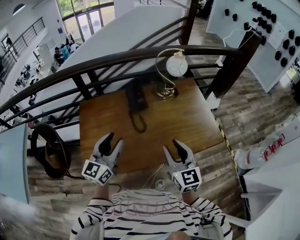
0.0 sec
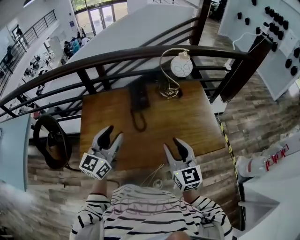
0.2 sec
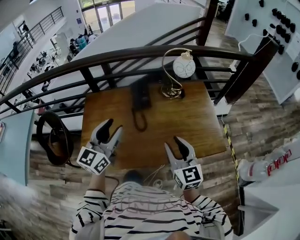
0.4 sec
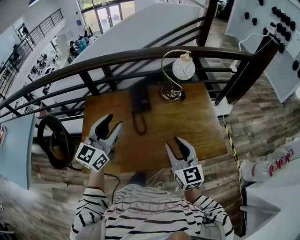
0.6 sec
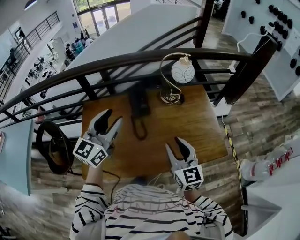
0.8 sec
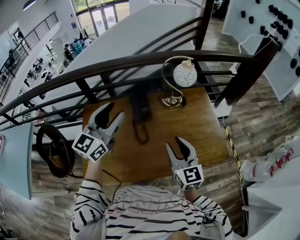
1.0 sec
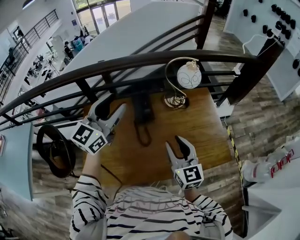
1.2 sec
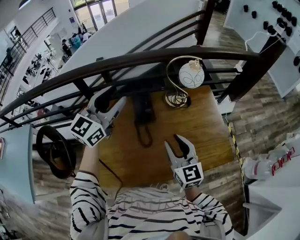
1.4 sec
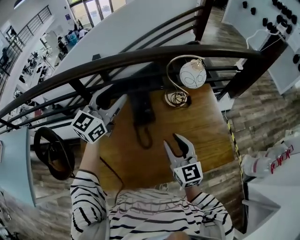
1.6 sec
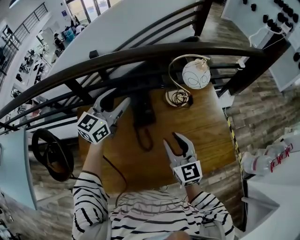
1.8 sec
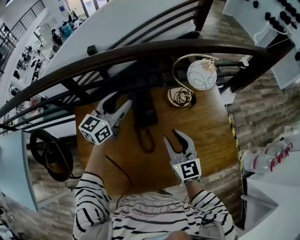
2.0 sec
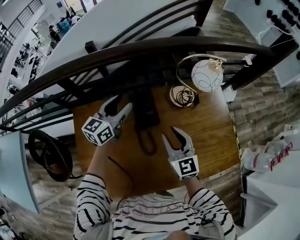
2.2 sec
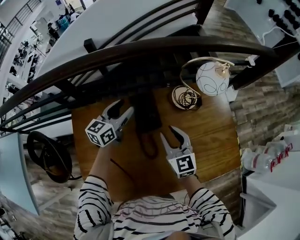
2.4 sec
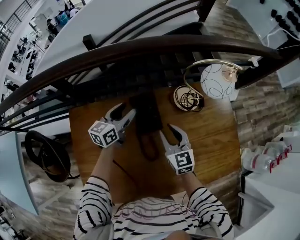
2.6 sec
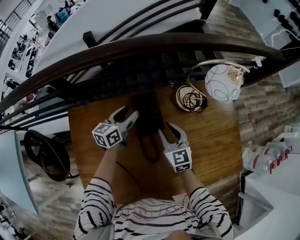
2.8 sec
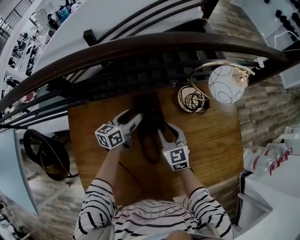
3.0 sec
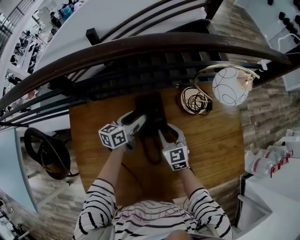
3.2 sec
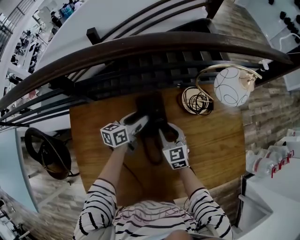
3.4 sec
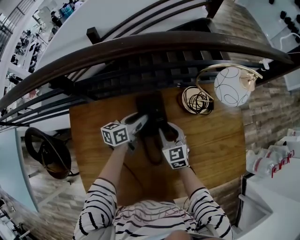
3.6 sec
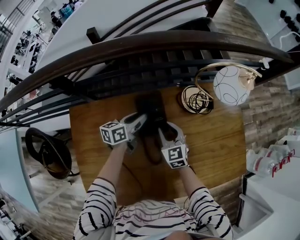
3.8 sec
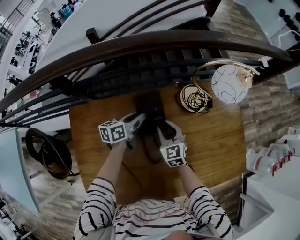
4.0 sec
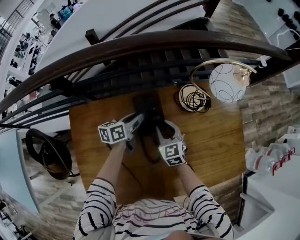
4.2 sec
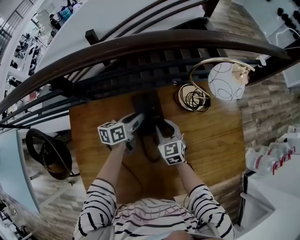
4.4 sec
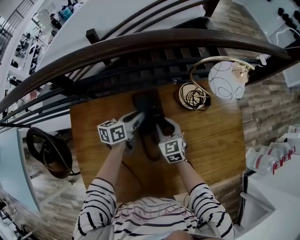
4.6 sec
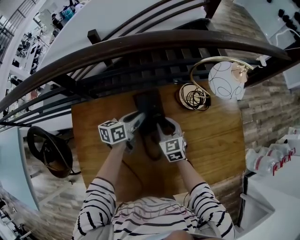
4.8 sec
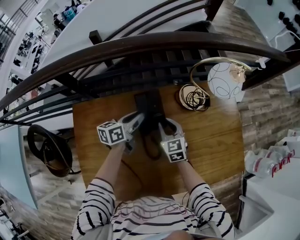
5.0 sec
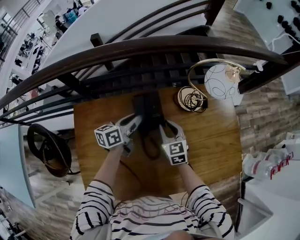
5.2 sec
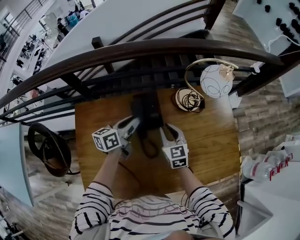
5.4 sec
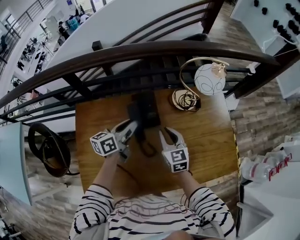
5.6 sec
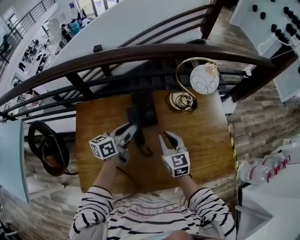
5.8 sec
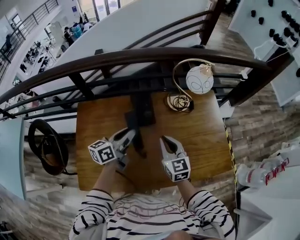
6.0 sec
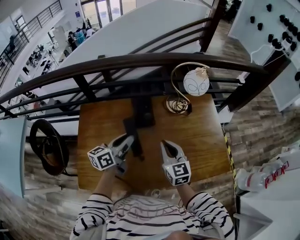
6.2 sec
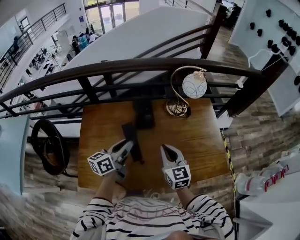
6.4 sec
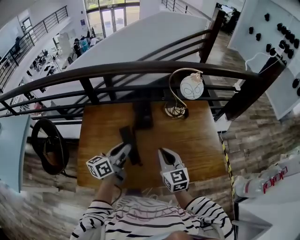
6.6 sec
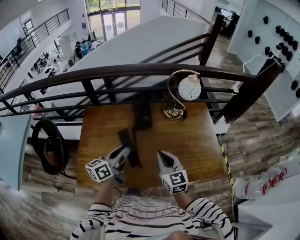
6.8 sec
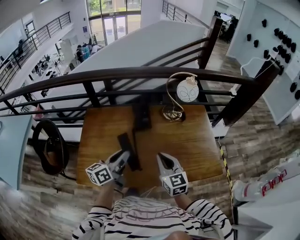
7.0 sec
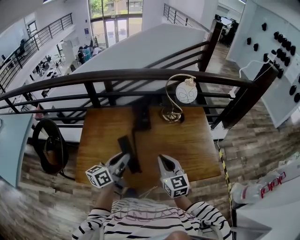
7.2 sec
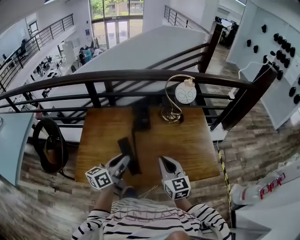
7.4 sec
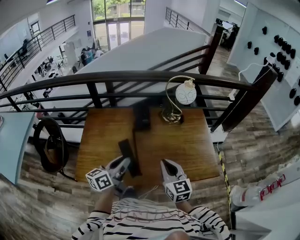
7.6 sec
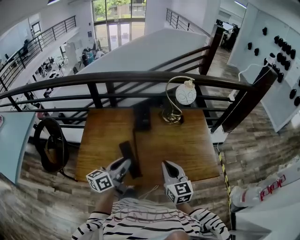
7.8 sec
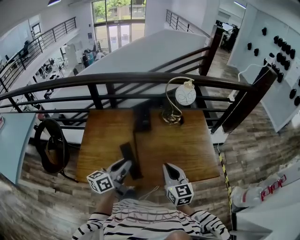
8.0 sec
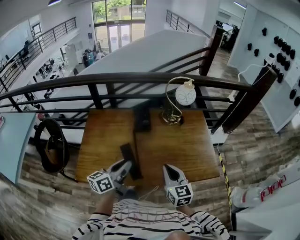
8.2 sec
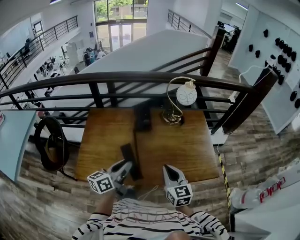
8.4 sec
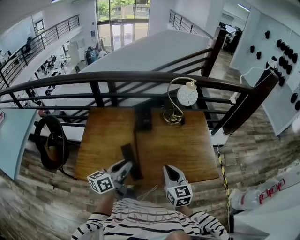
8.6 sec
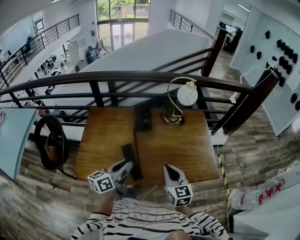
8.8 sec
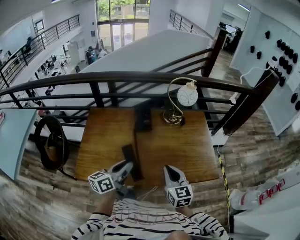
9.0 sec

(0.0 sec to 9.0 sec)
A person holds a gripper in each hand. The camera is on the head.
0.0 sec - 1.6 sec: Both grippers move forward, approximately 25 cm.
1.6 sec - 3.0 sec: The right gripper goes approximately 35 cm forward, downward and to the left. Meanwhile the left gripper heads downward and forward, covering roughly 40 cm, and rotates roughly 40 degrees.
3.0 sec - 4.4 sec: The left gripper closes its fingers.
4.4 sec - 6.0 sec: The left gripper heads backward and upward, covering about 25 cm. The right gripper travels backward, upward and to the right by roughly 25 cm, and closes its fingers.
6.0 sec - 7.6 sec: Both grippers move backward, roughly 25 cm.
7.6 sec - 9.0 sec: The grippers stay close to where they were, moving slightly.

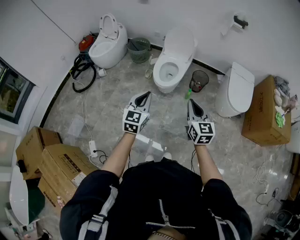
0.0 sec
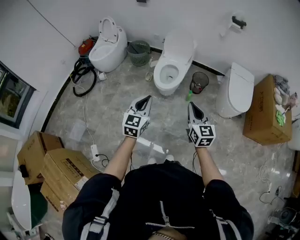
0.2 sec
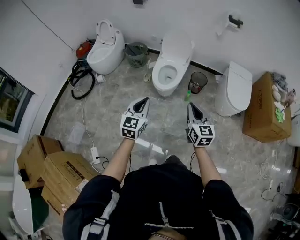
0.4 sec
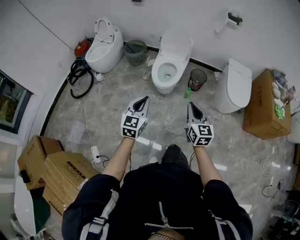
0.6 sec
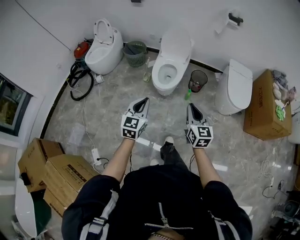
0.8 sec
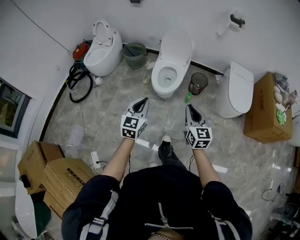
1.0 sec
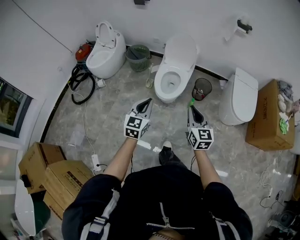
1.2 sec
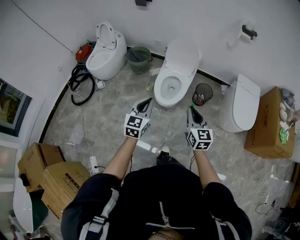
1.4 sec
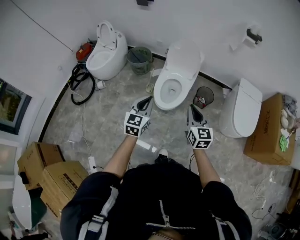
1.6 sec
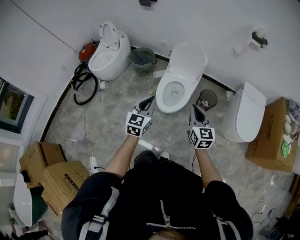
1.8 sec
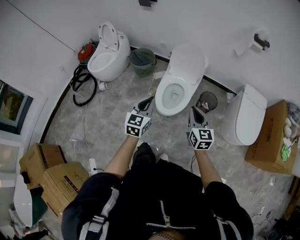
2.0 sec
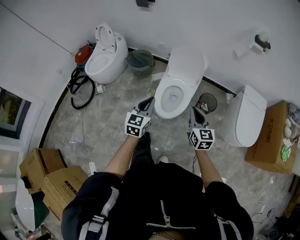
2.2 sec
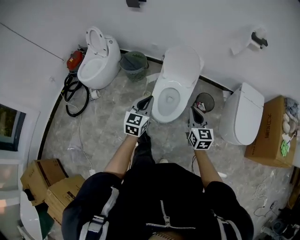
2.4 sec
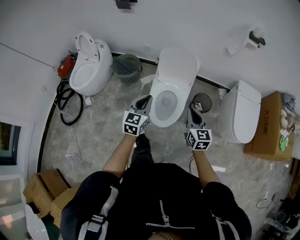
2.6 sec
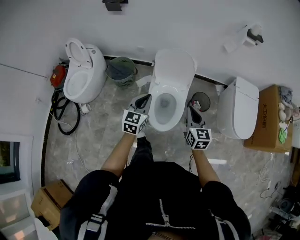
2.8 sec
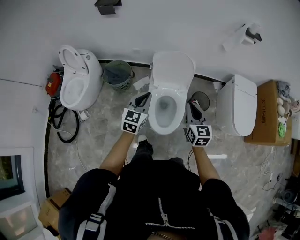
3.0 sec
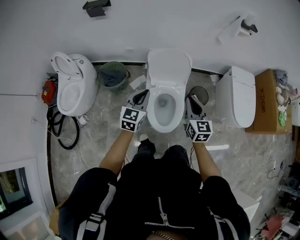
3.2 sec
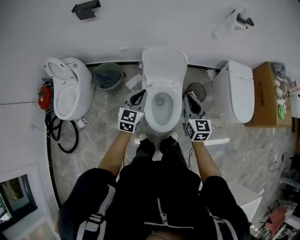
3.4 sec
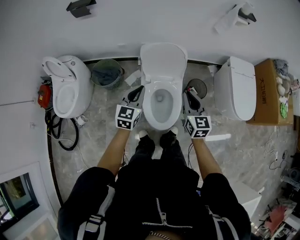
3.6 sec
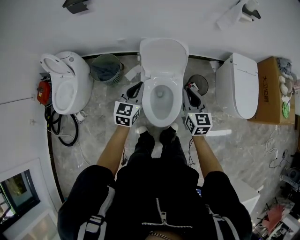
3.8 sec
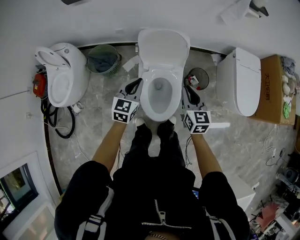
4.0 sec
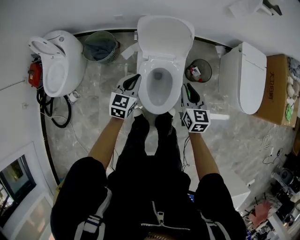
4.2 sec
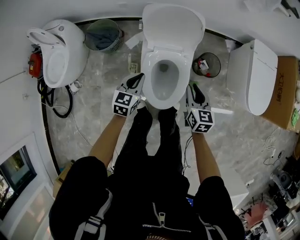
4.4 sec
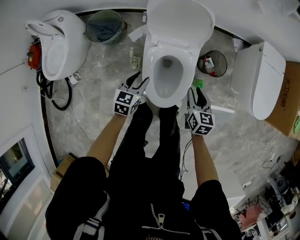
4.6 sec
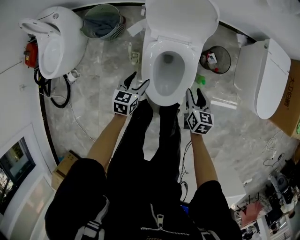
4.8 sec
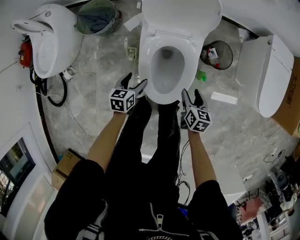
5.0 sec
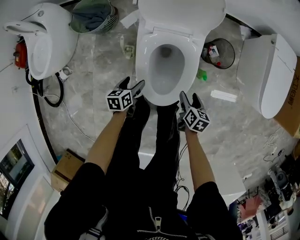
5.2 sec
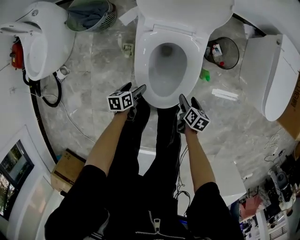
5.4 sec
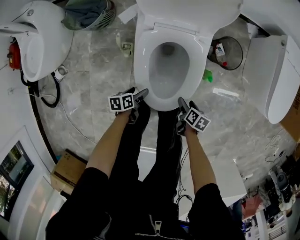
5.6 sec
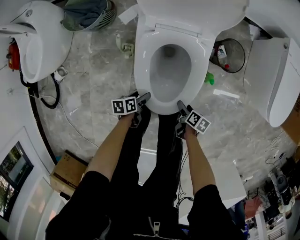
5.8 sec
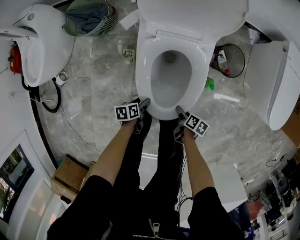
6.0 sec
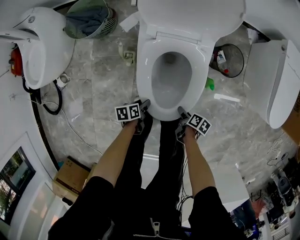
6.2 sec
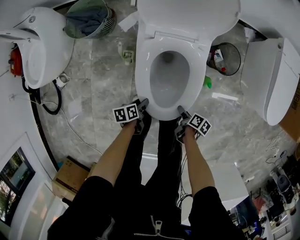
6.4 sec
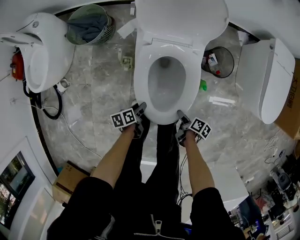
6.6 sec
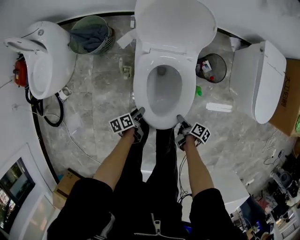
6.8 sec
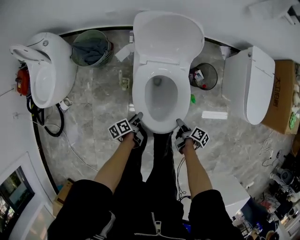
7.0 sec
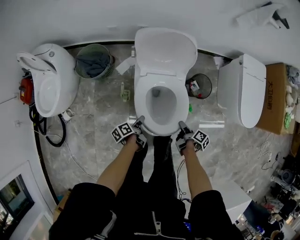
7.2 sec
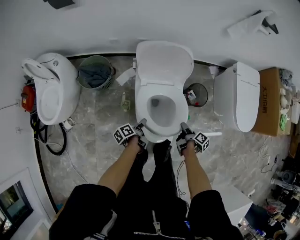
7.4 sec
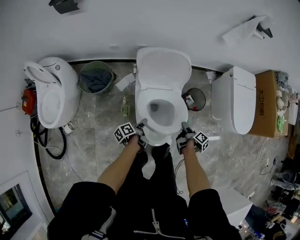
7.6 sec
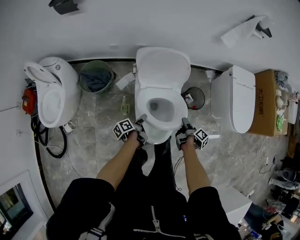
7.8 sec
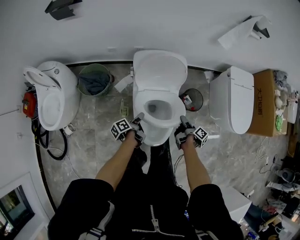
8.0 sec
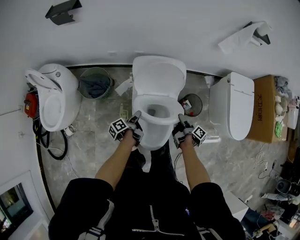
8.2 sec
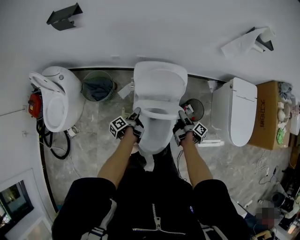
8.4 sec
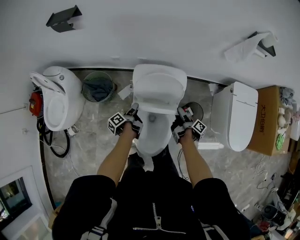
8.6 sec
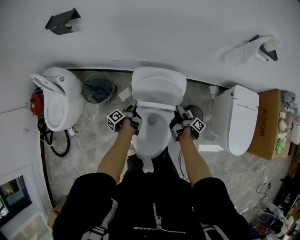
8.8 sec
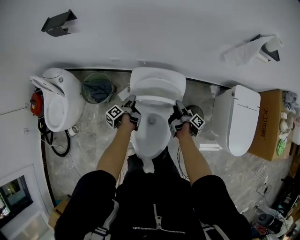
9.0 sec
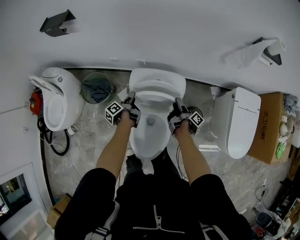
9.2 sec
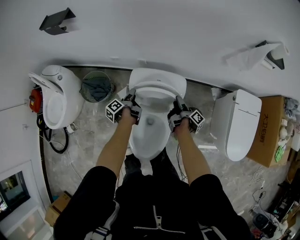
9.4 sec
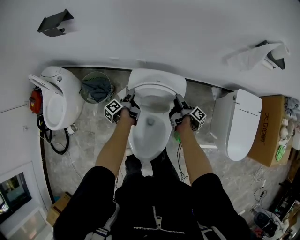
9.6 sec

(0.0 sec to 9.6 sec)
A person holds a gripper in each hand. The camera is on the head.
0.0 sec - 1.6 sec: The grippers both shift forward by some 25 cm.
1.6 sec - 3.2 sec: Both grippers travel together forward, roughly 35 cm. The left gripper rotates approximately 20 degrees; the right gripper changes its angle by about 20 degrees.
3.2 sec - 4.8 sec: The grippers both shift downward by some 35 cm. The right gripper changes its angle by approximately 30 degrees, and opens its fingers, while the left gripper changes its angle by about 30 degrees, and opens.
4.8 sec - 6.4 sec: Both grippers travel together downward and backward, some 25 cm. The right gripper rolls clockwise, seen from behind, by approximately 50 degrees. The left gripper rolls counterclockwise, seen from behind, by approximately 50 degrees.
6.4 sec - 8.0 sec: The grippers both shift upward and forward by some 30 cm. The left gripper changes its angle by approximately 40 degrees. The right gripper turns by some 40 degrees.
8.0 sec - 9.6 sec: The grippers both shift forward by approximately 30 cm. The left gripper turns by some 20 degrees.

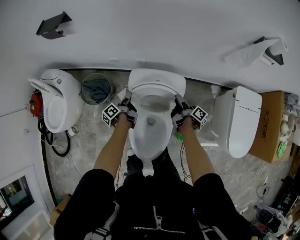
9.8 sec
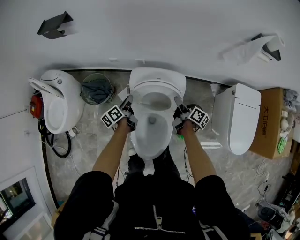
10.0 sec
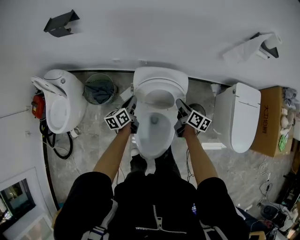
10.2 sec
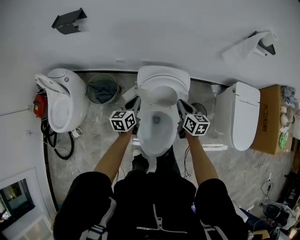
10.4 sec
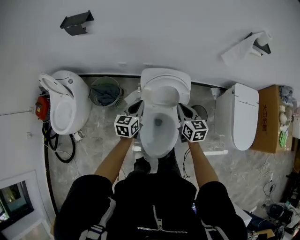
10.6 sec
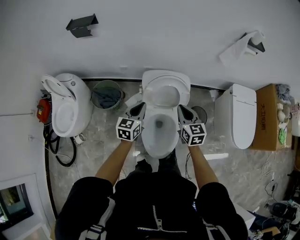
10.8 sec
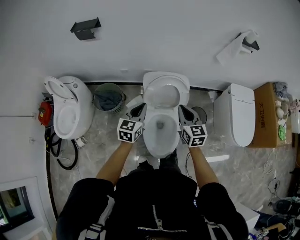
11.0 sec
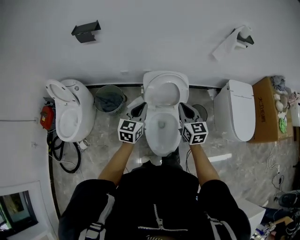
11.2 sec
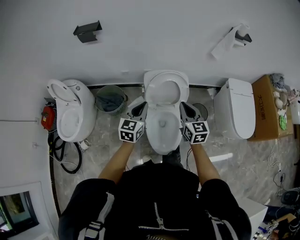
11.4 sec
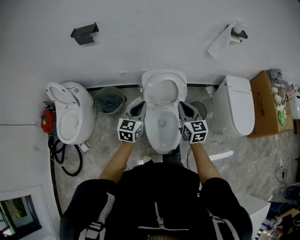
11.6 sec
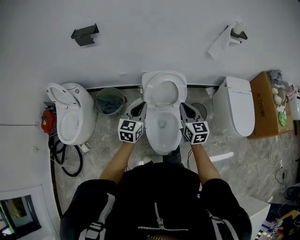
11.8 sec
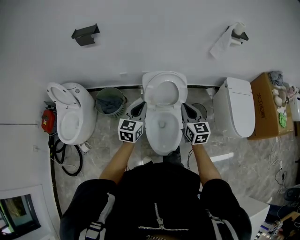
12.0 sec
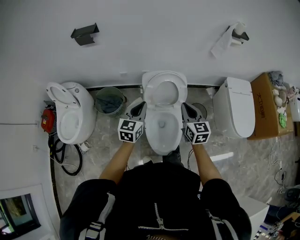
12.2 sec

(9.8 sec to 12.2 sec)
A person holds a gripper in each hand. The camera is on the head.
9.8 sec - 11.0 sec: The right gripper heads upward, backward and to the left, covering about 35 cm, twists about 90 degrees counterclockwise, seen from behind, and closes up, while the left gripper shifts about 30 cm upward and backward, twists roughly 80 degrees clockwise, seen from behind, and closes.
11.0 sec - 12.2 sec: The left gripper moves some 5 cm, while the right gripper moves some 5 cm.

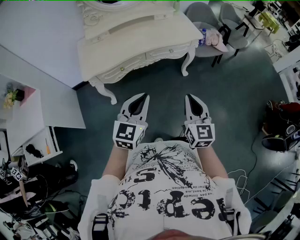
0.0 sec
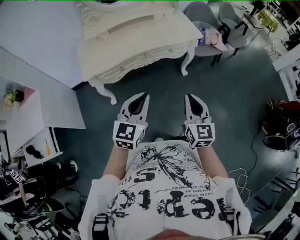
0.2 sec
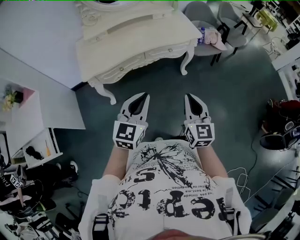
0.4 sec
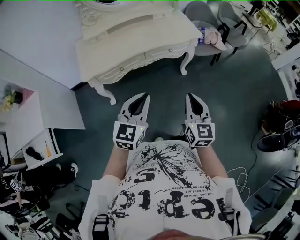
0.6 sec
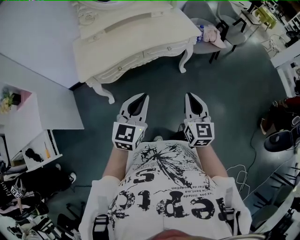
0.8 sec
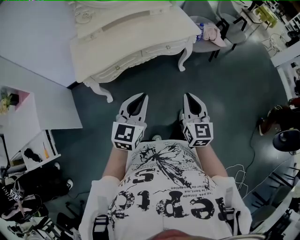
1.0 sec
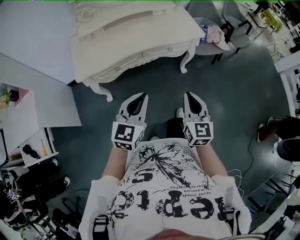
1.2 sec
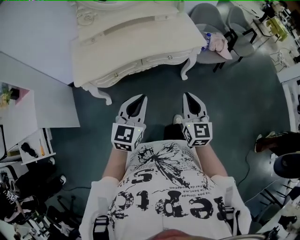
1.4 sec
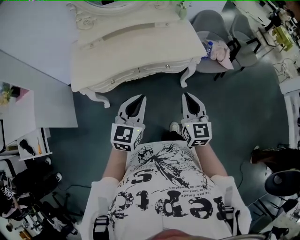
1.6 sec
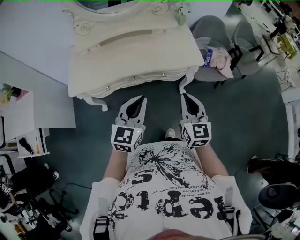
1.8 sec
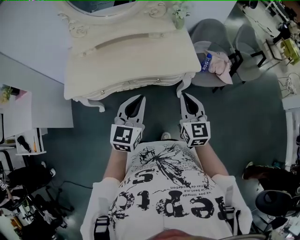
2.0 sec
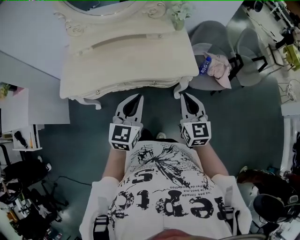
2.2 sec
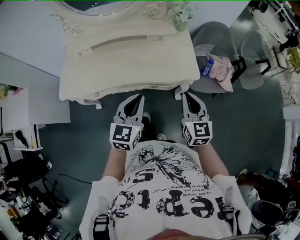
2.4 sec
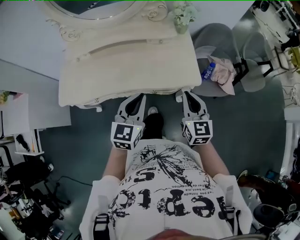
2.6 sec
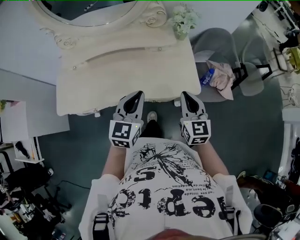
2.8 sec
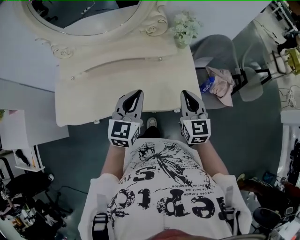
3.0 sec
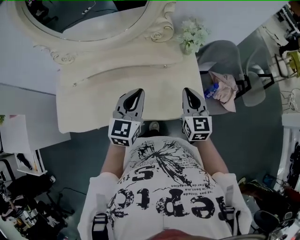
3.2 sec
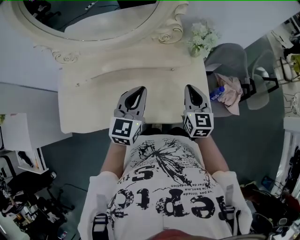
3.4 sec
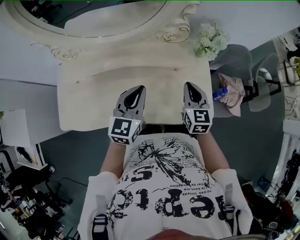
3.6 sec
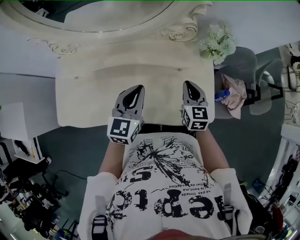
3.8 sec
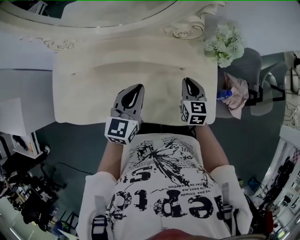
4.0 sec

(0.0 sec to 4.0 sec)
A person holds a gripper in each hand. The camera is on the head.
0.0 sec - 1.4 sec: Both grippers move forward, about 10 cm.
1.4 sec - 2.6 sec: The grippers both shift forward and to the right by approximately 35 cm.
2.6 sec - 4.0 sec: The right gripper moves forward and downward, some 35 cm. Meanwhile the left gripper heads forward and to the left, covering roughly 30 cm.
